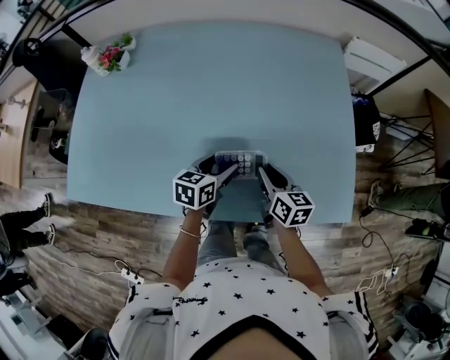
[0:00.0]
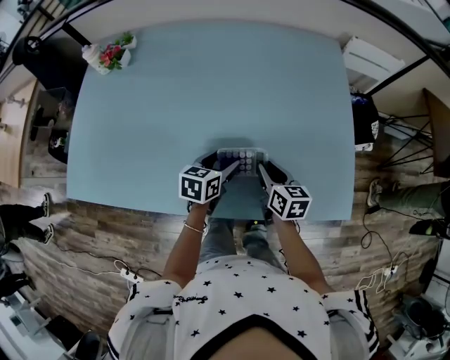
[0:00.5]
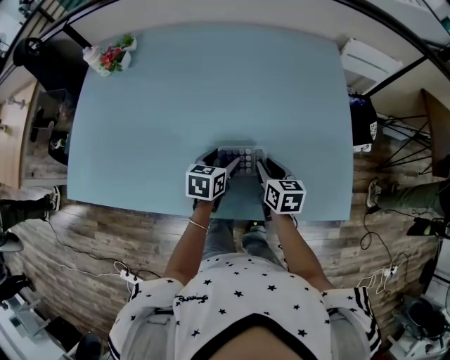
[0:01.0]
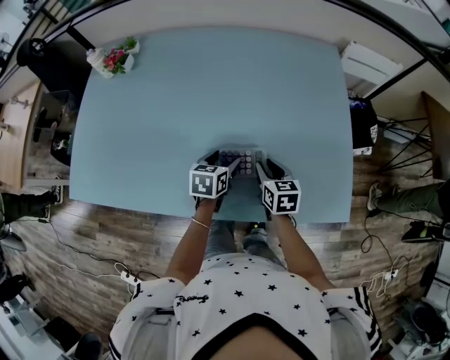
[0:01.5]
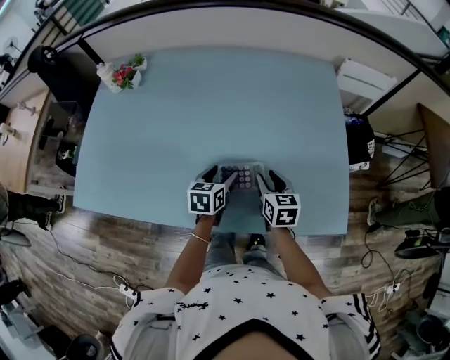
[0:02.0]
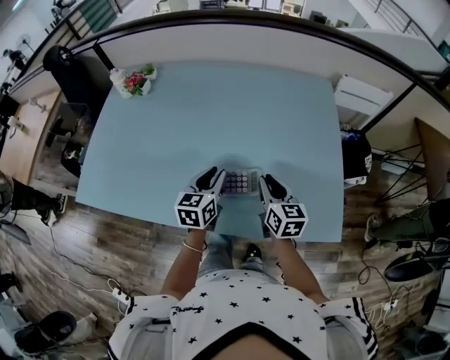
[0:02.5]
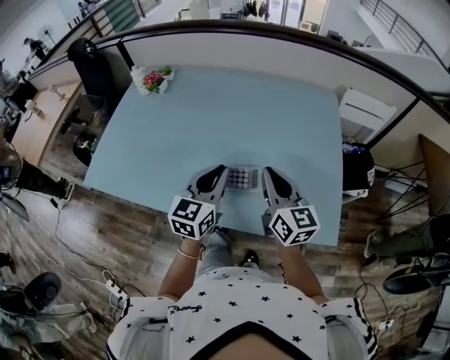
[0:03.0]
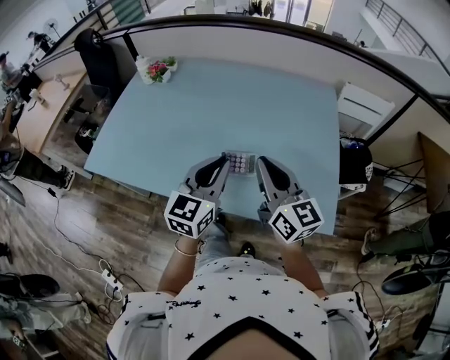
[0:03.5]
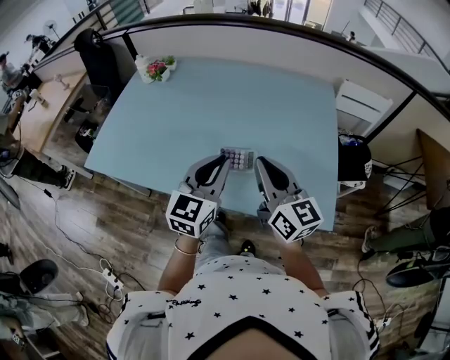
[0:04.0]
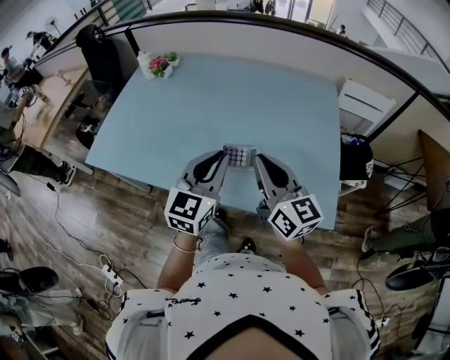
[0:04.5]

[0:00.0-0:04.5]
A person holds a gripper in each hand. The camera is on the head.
2.0 to 4.5 s: Both grippers travel together upward and backward, about 25 cm. The left gripper angles its fingers upward, by about 30 degrees, and closes its fingers, while the right gripper points its fingers some 40 degrees further upward, and closes.

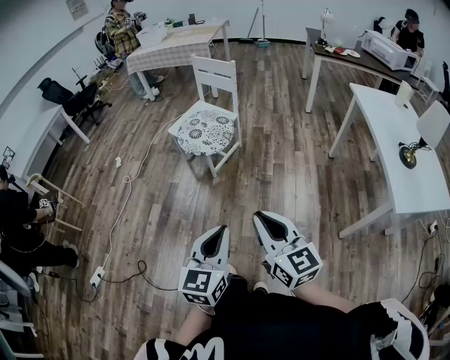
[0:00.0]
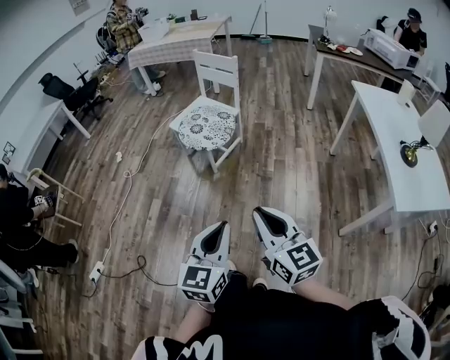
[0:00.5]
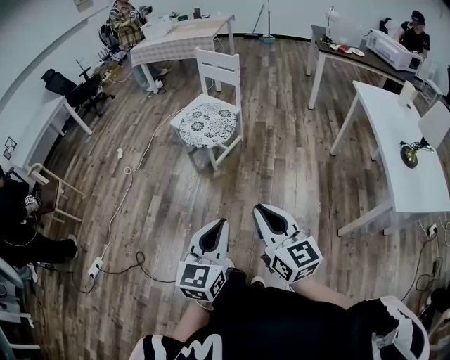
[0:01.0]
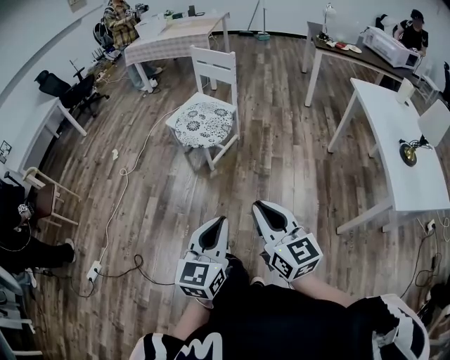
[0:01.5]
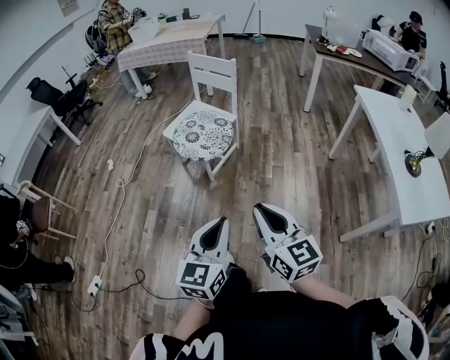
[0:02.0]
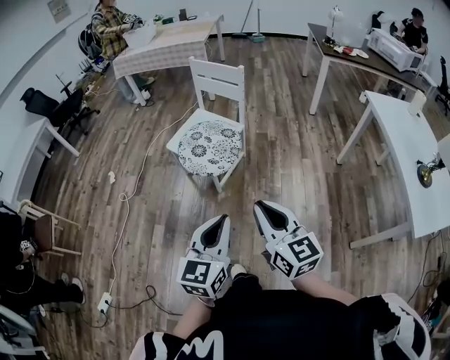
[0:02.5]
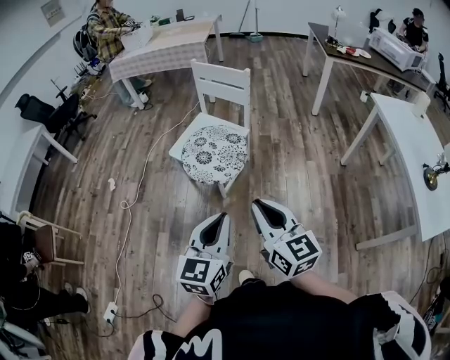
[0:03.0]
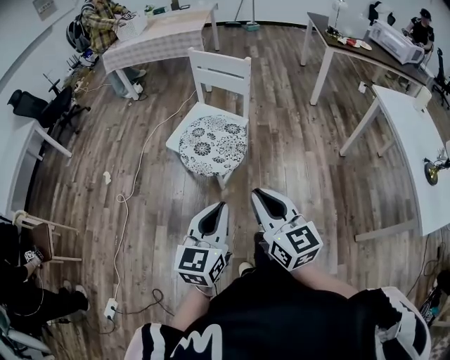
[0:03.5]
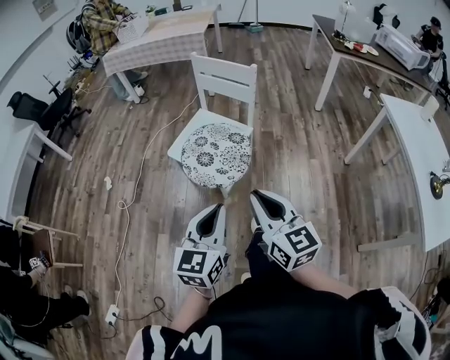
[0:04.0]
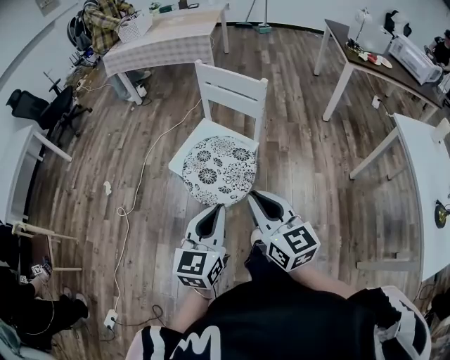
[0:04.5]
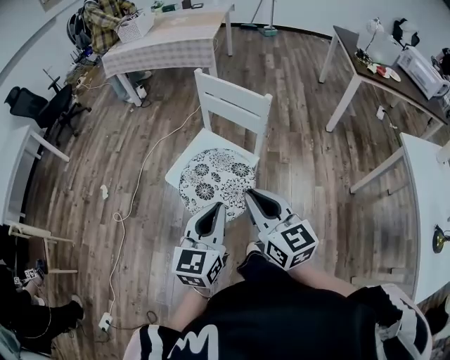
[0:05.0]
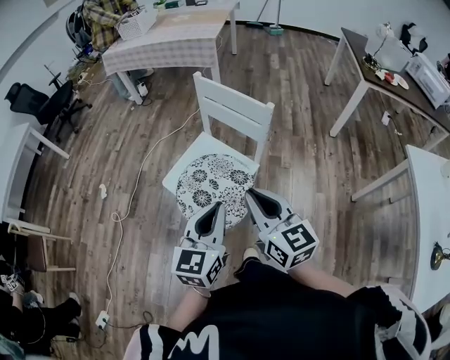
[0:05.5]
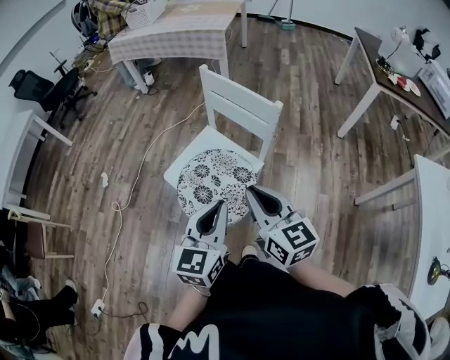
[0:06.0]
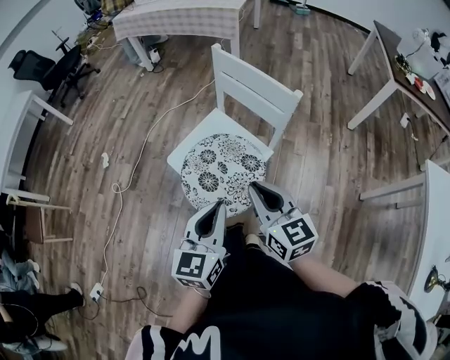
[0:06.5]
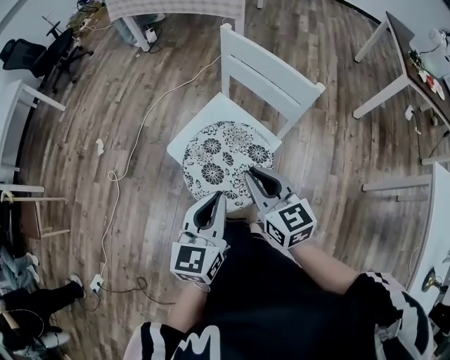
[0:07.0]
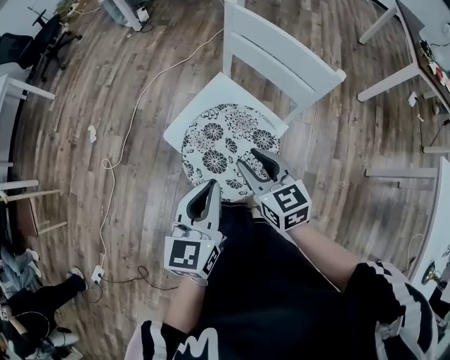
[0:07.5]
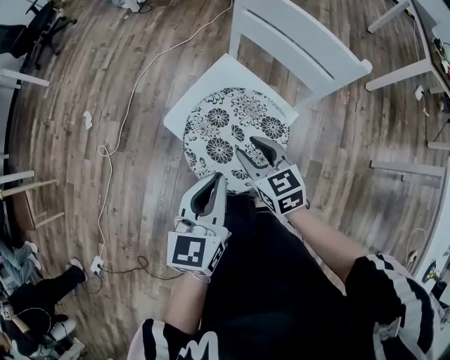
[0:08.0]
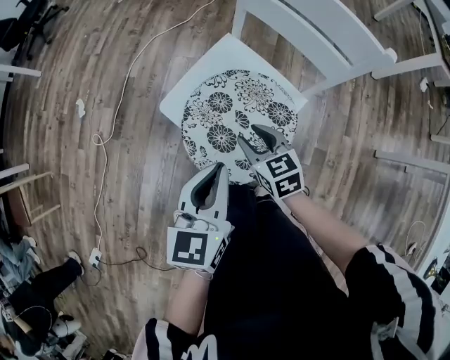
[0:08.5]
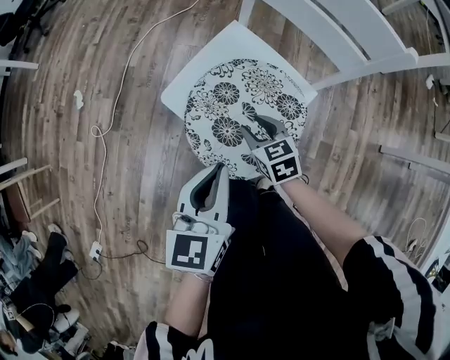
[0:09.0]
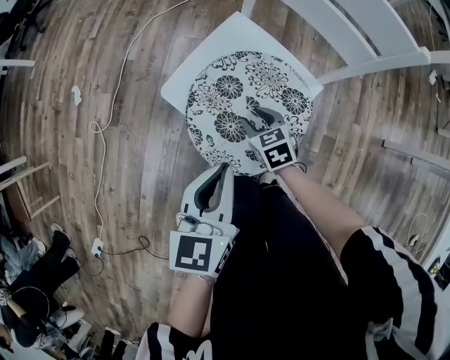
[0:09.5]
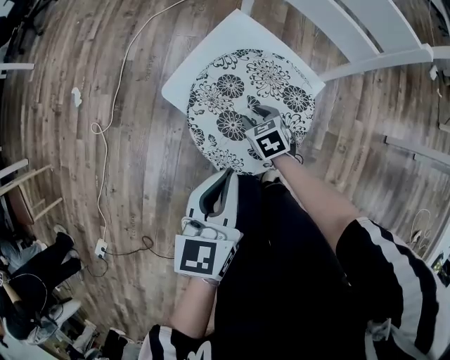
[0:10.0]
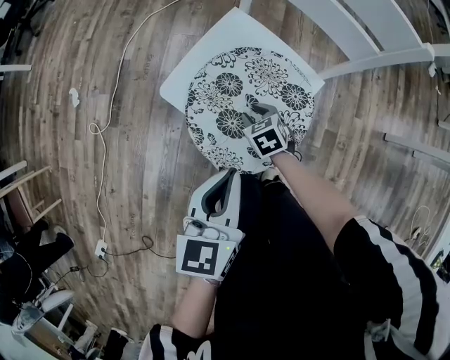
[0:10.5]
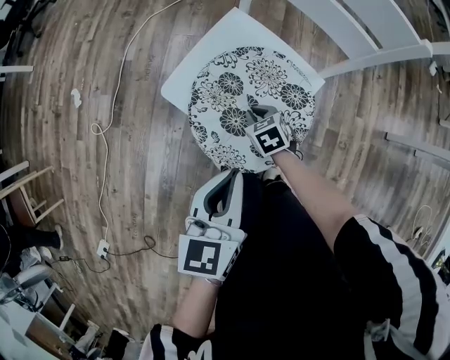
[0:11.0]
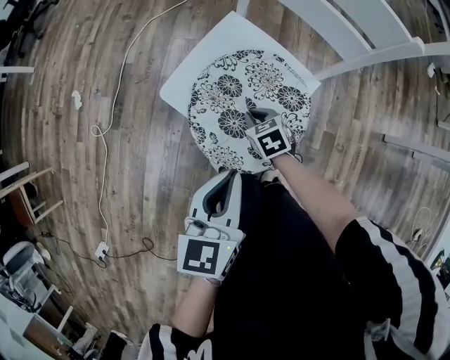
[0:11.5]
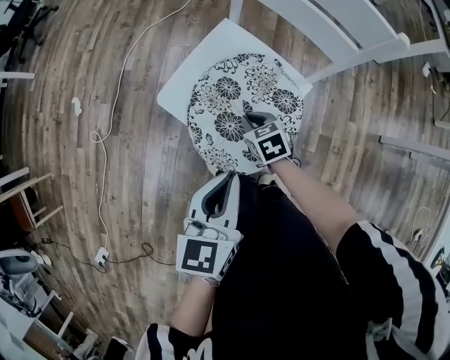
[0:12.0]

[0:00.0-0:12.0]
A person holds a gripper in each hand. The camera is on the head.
0.0 to 2.0 s: The grippers both shift forward by about 10 cm.
2.0 to 4.0 s: Both grippers move forward and to the left, some 30 cm.
4.0 to 6.0 s: Both grippers travel together forward, some 25 cm.
6.0 to 8.0 s: The left gripper is displaced downward, to the left and forward by about 20 cm. The right gripper goes roughly 30 cm downward, forward and to the left, swivels about 30 degrees, and opens up.
8.0 to 10.0 s: The left gripper is displaced downward by about 10 cm; the right gripper moves downward, about 25 cm, and changes its angle by about 30 degrees.
10.0 to 12.0 s: The right gripper closes up.

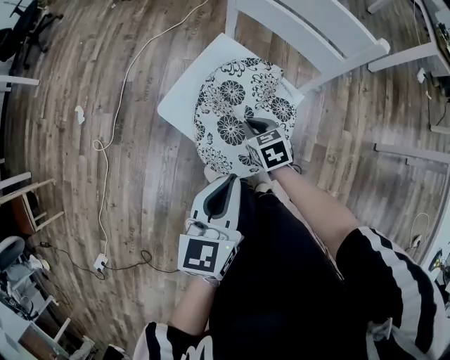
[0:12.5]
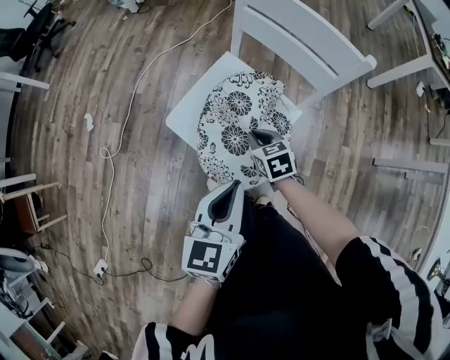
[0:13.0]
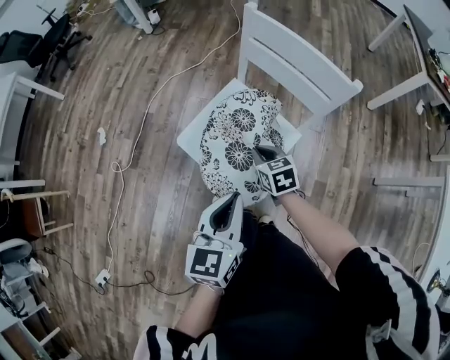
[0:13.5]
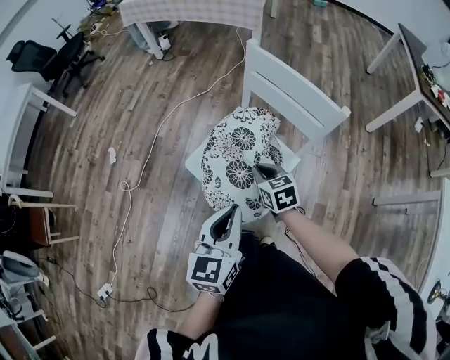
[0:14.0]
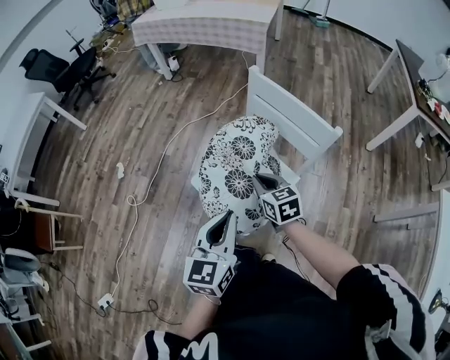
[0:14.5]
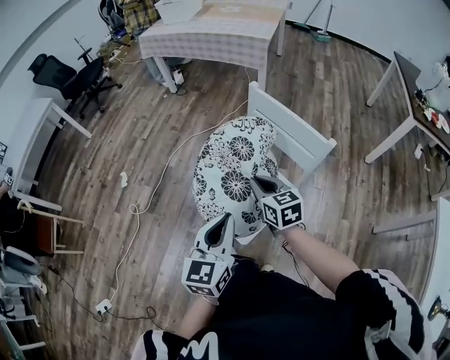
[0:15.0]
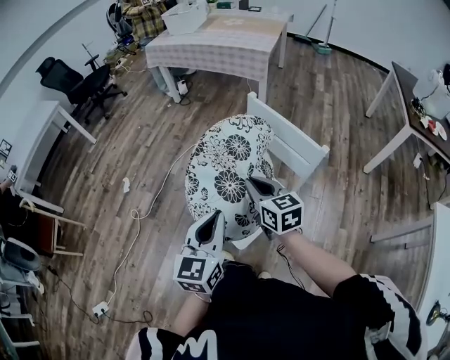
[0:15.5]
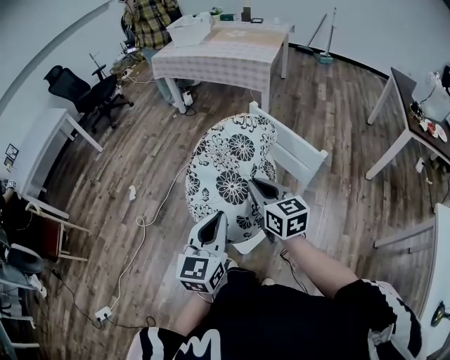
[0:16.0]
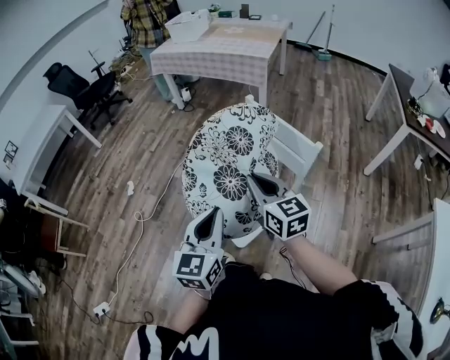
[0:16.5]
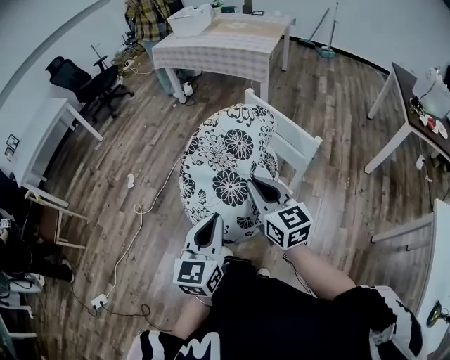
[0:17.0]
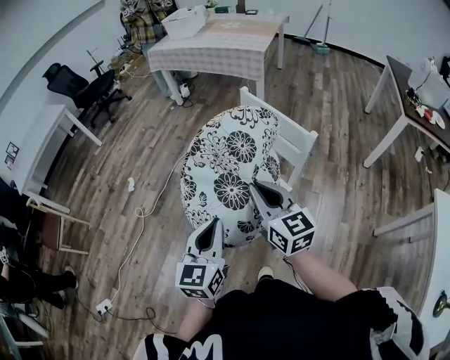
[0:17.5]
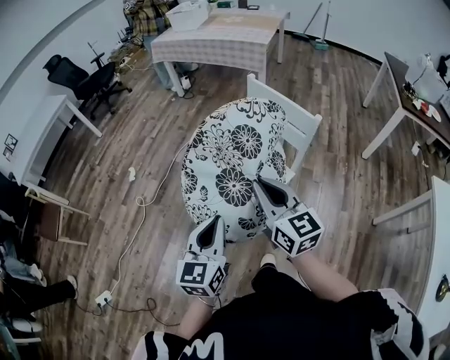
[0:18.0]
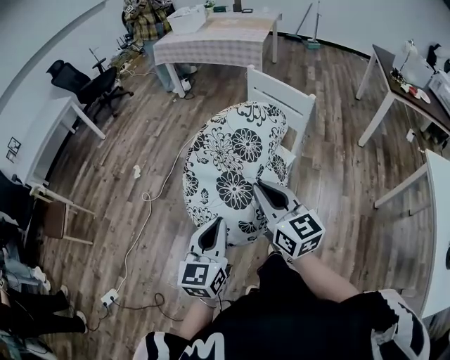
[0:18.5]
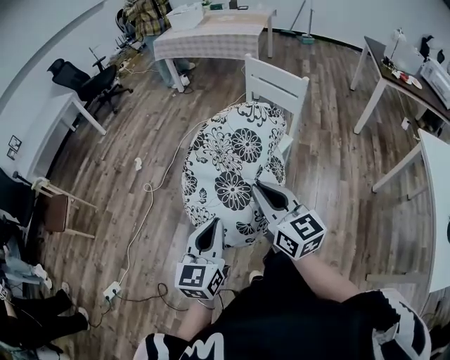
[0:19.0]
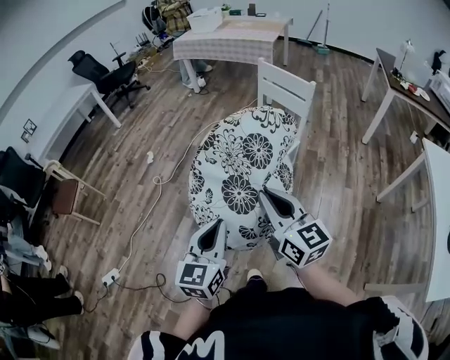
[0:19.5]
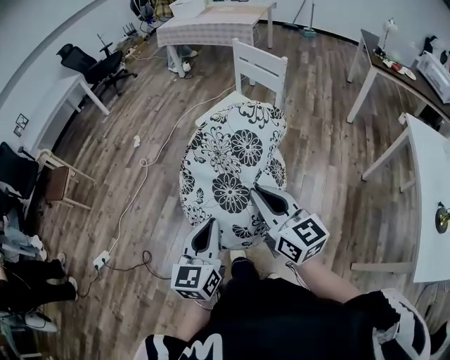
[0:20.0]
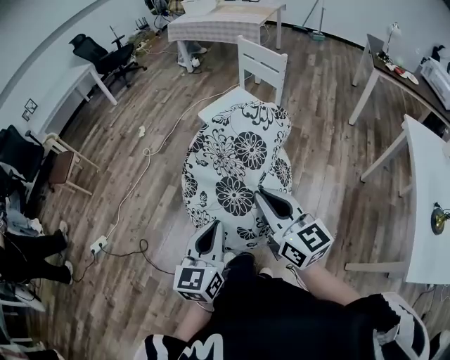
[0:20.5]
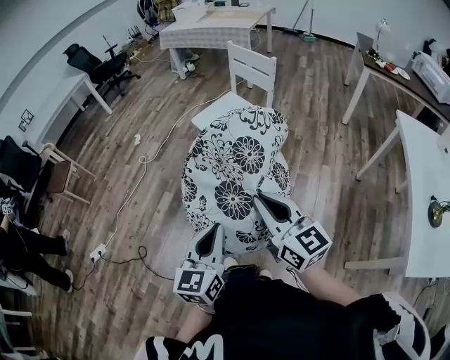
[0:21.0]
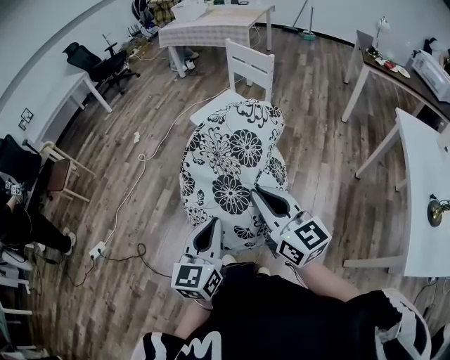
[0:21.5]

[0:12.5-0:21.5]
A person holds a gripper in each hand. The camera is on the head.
12.5 to 14.5 s: The left gripper travels upward by some 15 cm. The right gripper moves upward, approximately 20 cm.
14.5 to 17.0 s: The left gripper goes approximately 10 cm backward and upward. The right gripper is displaced upward and backward by about 20 cm, and swivels roughly 30 degrees.
17.0 to 19.5 s: The grippers both shift backward by some 35 cm.
19.5 to 21.5 s: Both grippers move backward and to the right, roughly 25 cm.

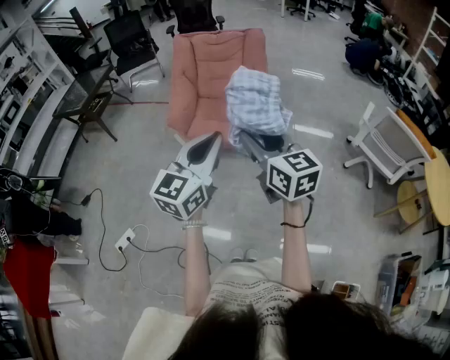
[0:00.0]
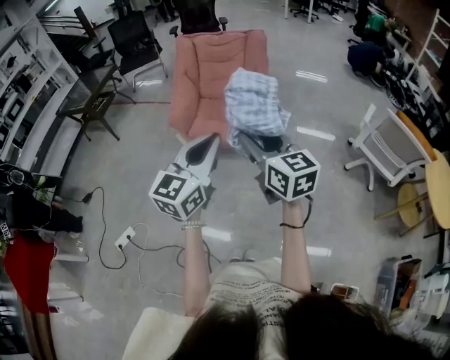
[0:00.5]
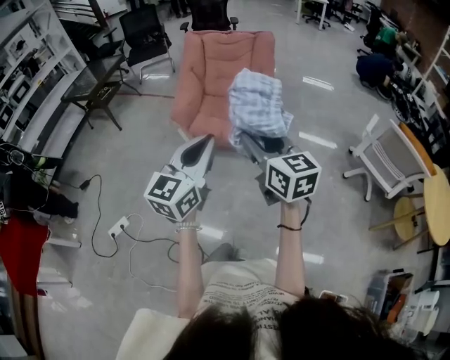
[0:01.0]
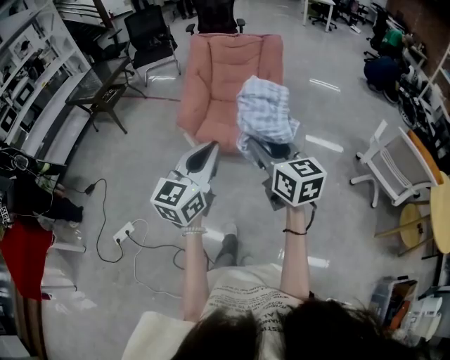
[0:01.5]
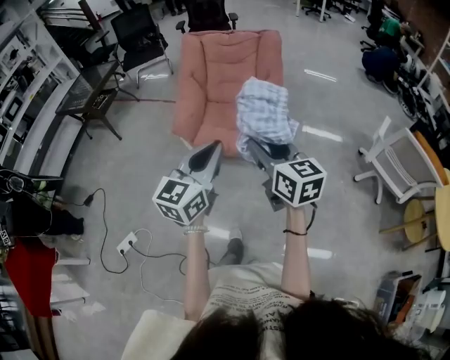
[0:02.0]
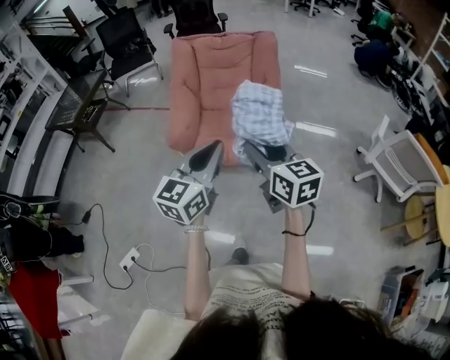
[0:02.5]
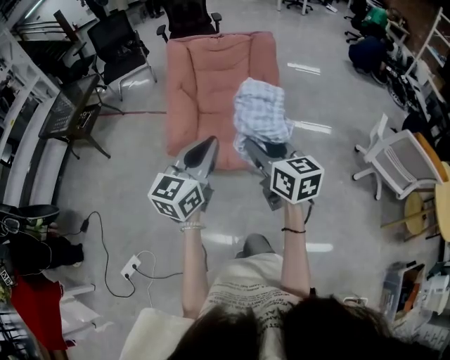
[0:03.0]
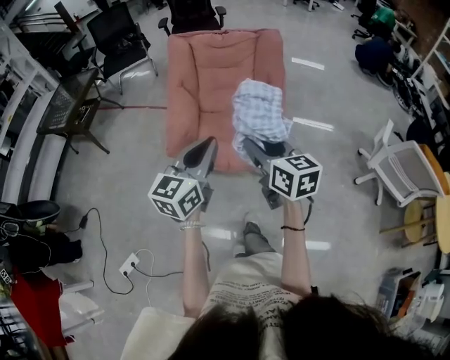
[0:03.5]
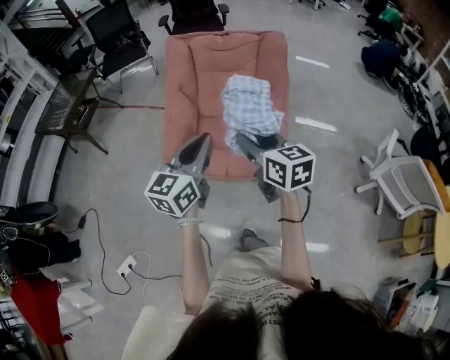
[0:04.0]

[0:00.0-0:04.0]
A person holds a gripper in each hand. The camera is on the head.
0.0 to 2.0 s: The grippers both shift forward by roughly 10 cm.
2.0 to 4.0 s: The grippers both shift forward by some 30 cm.
